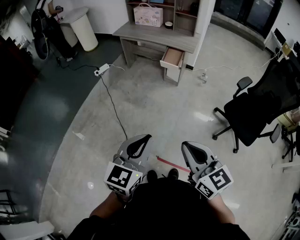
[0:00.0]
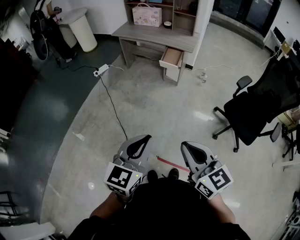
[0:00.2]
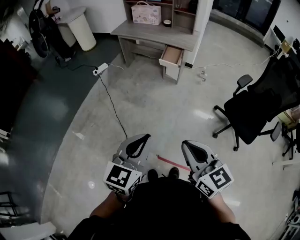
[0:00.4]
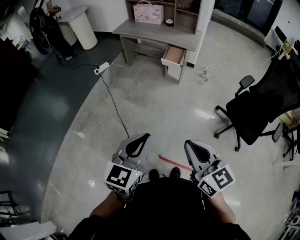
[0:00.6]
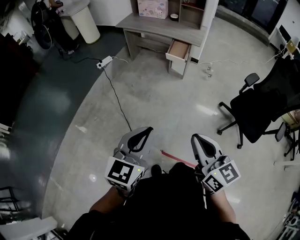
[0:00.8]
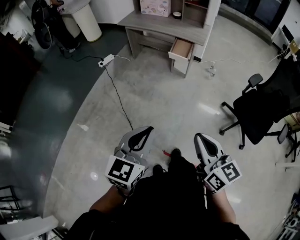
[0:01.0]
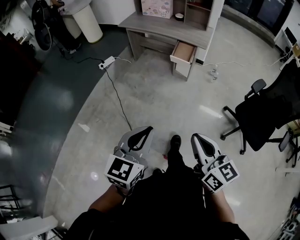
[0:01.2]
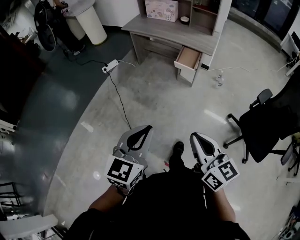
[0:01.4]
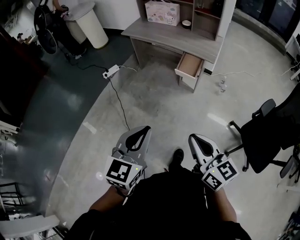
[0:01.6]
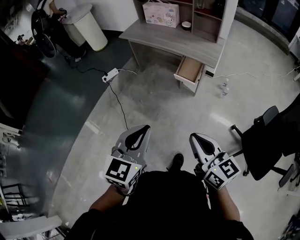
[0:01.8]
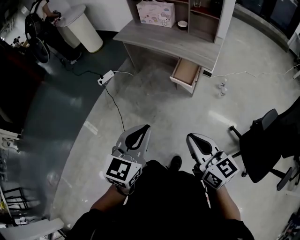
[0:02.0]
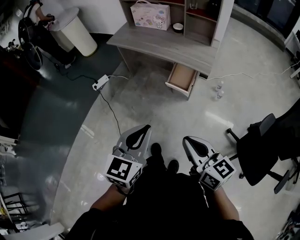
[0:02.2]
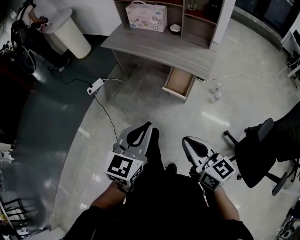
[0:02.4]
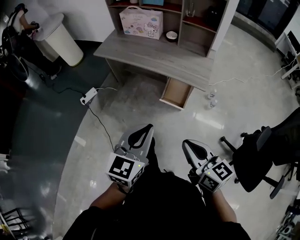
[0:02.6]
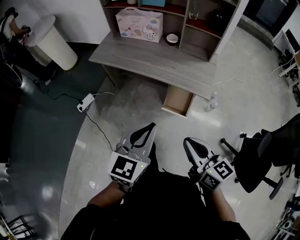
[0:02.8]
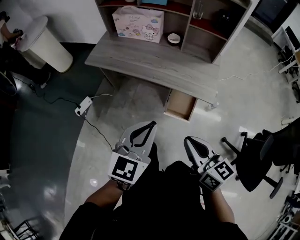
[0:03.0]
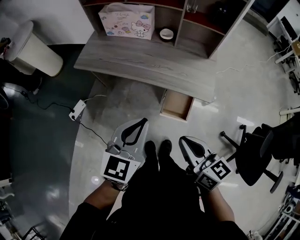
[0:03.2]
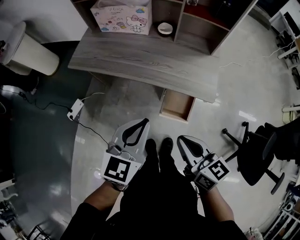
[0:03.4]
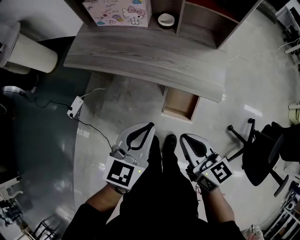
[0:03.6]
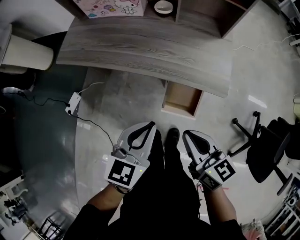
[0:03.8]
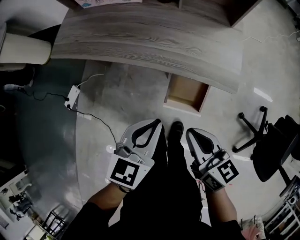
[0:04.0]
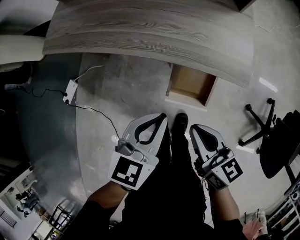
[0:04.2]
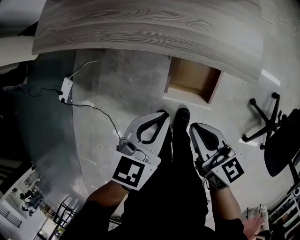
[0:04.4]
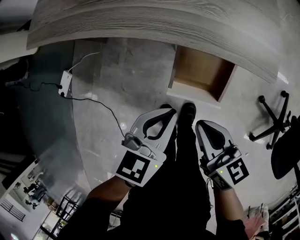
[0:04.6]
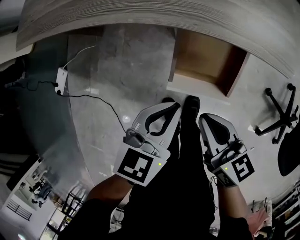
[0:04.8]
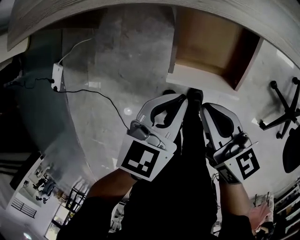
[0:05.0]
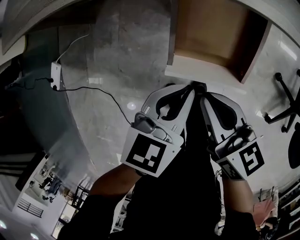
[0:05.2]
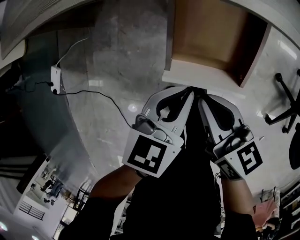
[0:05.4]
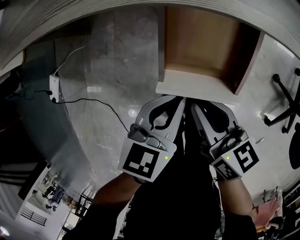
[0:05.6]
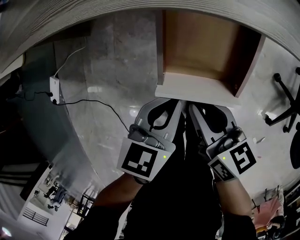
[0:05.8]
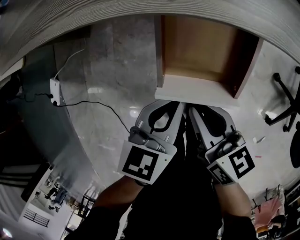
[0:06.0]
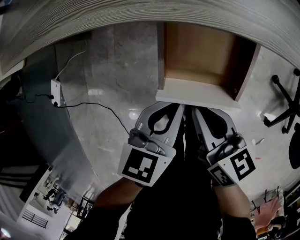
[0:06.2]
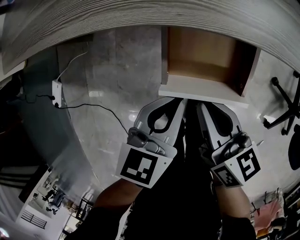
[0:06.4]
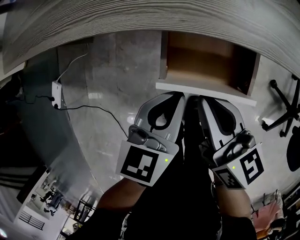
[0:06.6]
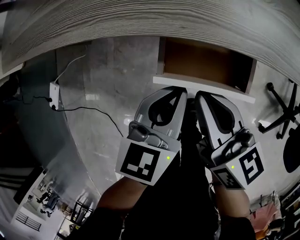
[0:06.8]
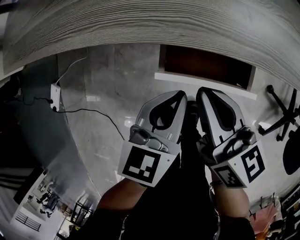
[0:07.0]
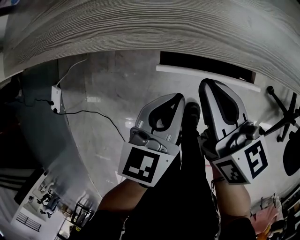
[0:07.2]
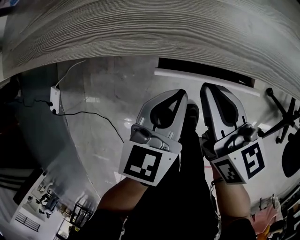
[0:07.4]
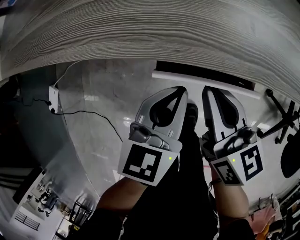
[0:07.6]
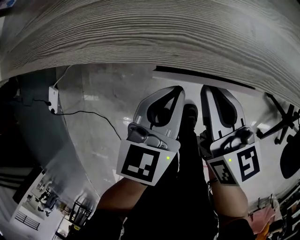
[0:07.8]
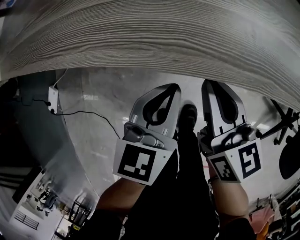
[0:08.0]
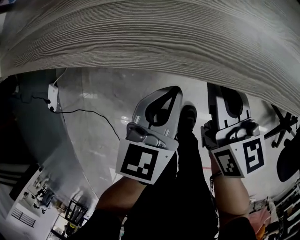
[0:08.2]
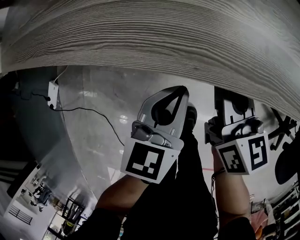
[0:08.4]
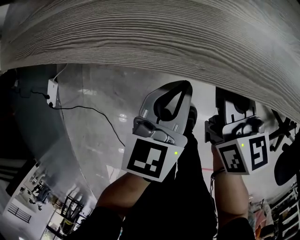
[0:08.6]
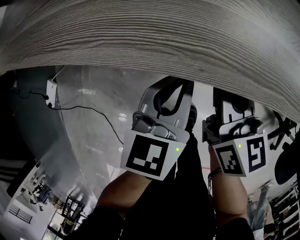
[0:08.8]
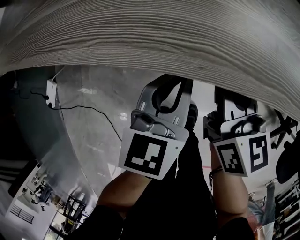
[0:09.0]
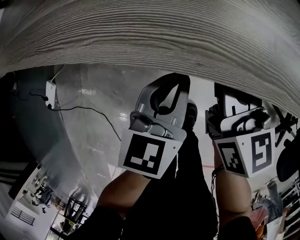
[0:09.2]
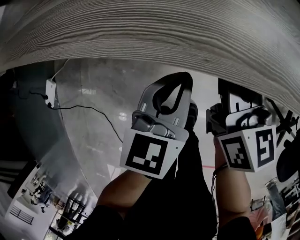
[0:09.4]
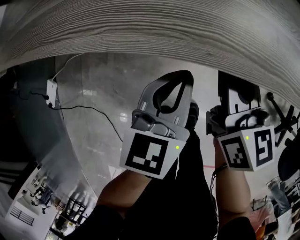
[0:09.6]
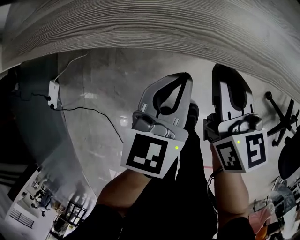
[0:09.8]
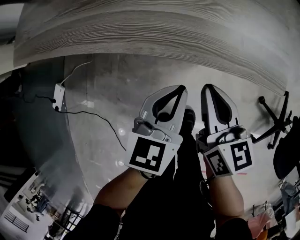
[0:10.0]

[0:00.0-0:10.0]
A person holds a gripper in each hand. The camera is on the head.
0:00.0 to 0:01.4: The two grippers go about 20 cm forward.
0:01.4 to 0:02.8: The two grippers travel together, forward, roughly 50 cm.
0:02.8 to 0:04.2: Both grippers travel together downward and forward, approximately 30 cm. The left gripper changes its angle by approximately 20 degrees.
0:04.2 to 0:05.8: The grippers both shift downward by some 25 cm.
0:05.8 to 0:07.2: The left gripper travels forward by about 5 cm; the right gripper heads forward and upward, covering approximately 15 cm.
0:07.2 to 0:08.6: The grippers both shift forward by about 5 cm.
0:08.6 to 0:10.0: The right gripper moves backward and upward, approximately 10 cm; the left gripper heads upward, covering approximately 5 cm.

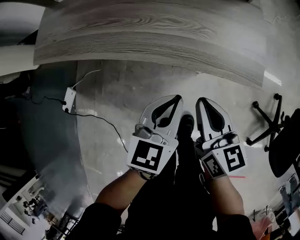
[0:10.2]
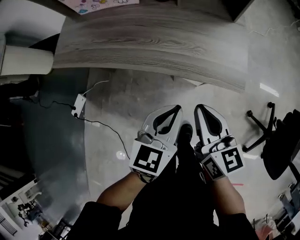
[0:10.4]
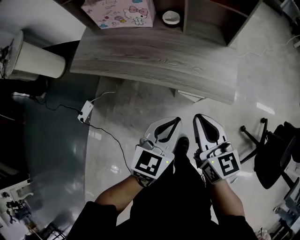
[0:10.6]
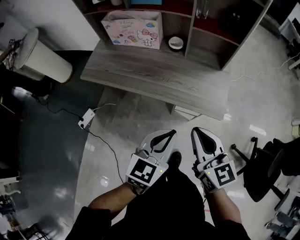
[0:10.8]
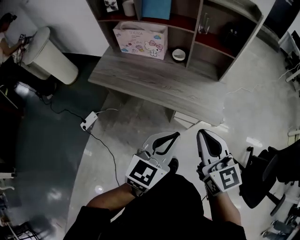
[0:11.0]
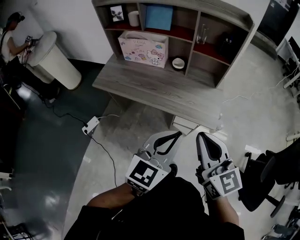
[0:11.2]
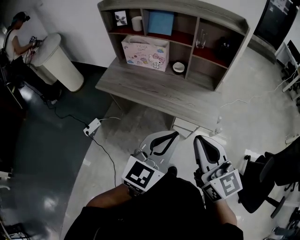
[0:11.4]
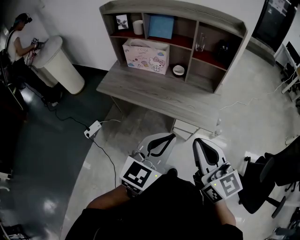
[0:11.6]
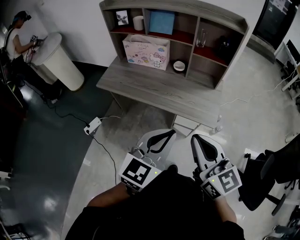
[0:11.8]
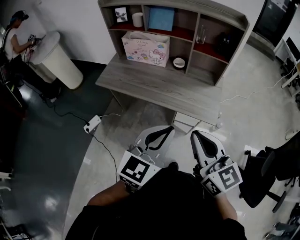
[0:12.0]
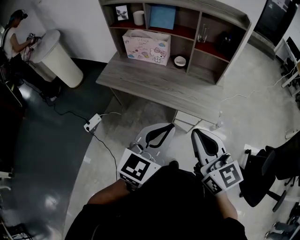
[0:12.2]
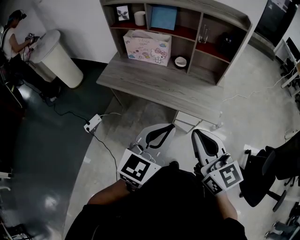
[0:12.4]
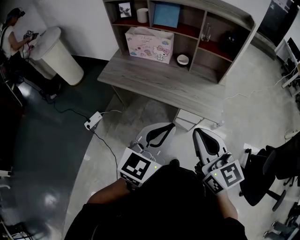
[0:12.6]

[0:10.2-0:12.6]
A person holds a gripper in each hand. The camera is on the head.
0:10.2 to 0:11.4: The right gripper travels upward by approximately 40 cm, and changes its angle by some 30 degrees; the left gripper travels upward and backward by approximately 40 cm, and rotates some 30 degrees.
0:11.4 to 0:12.6: The left gripper travels to the left by some 5 cm.

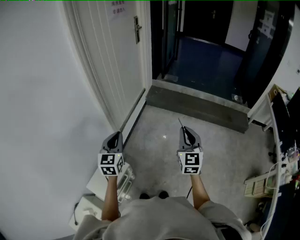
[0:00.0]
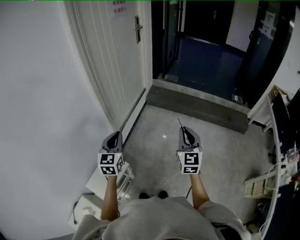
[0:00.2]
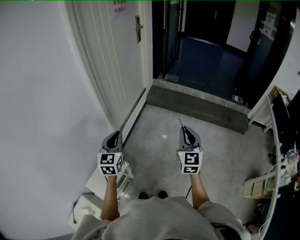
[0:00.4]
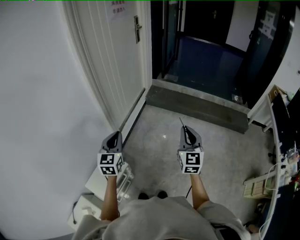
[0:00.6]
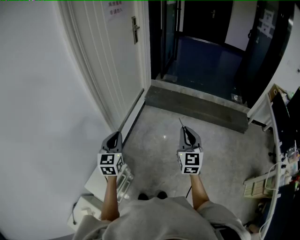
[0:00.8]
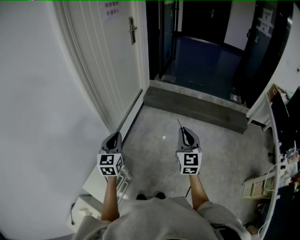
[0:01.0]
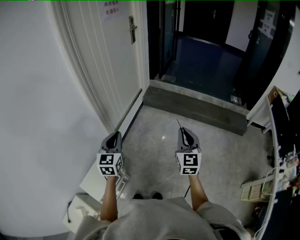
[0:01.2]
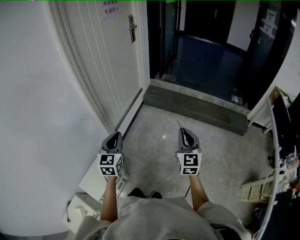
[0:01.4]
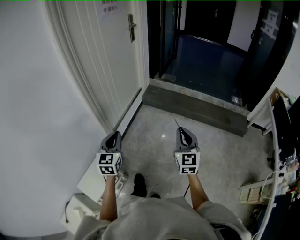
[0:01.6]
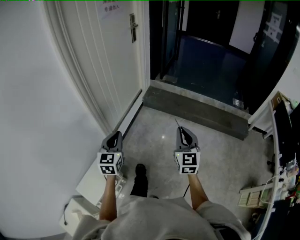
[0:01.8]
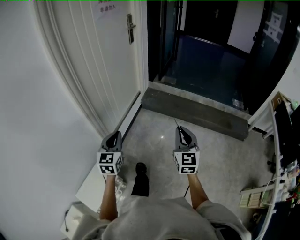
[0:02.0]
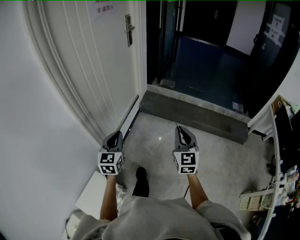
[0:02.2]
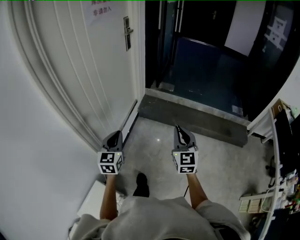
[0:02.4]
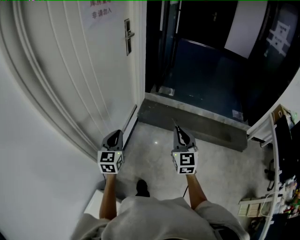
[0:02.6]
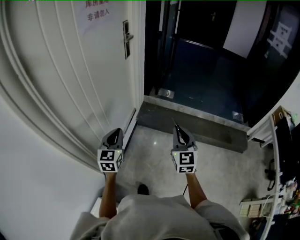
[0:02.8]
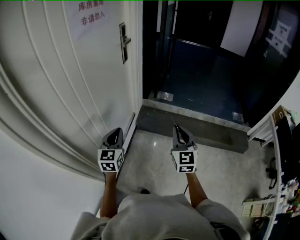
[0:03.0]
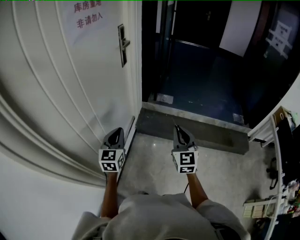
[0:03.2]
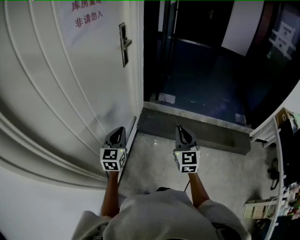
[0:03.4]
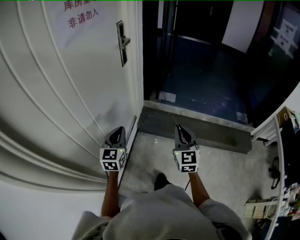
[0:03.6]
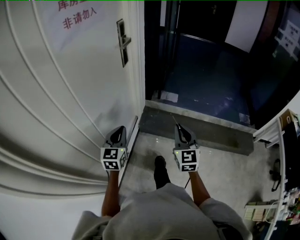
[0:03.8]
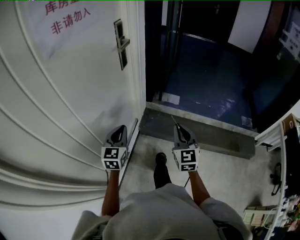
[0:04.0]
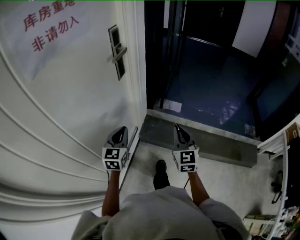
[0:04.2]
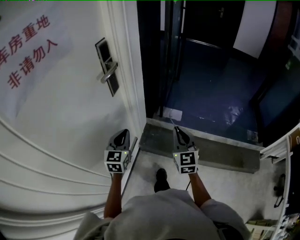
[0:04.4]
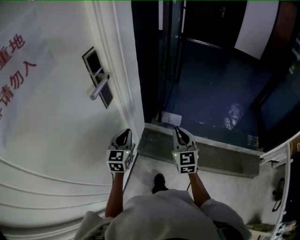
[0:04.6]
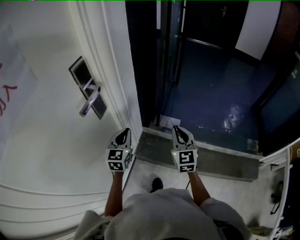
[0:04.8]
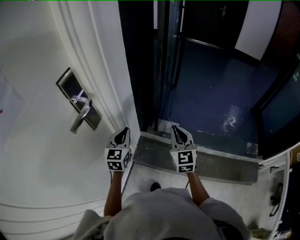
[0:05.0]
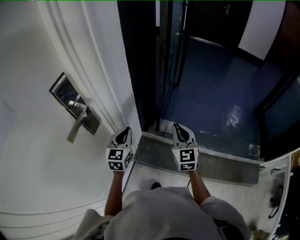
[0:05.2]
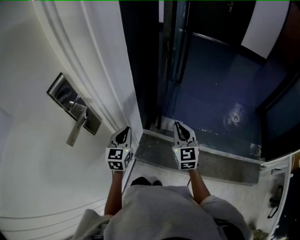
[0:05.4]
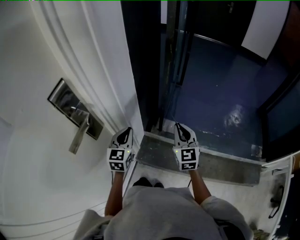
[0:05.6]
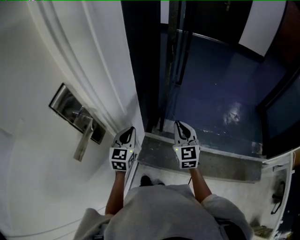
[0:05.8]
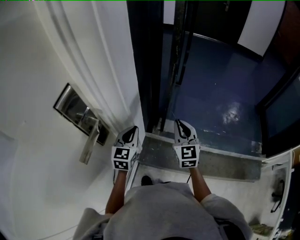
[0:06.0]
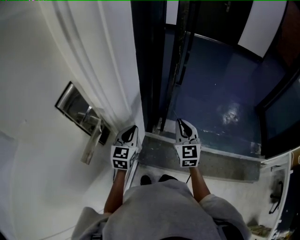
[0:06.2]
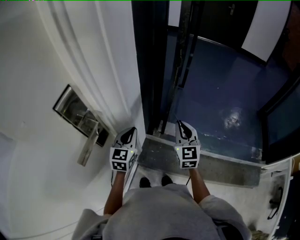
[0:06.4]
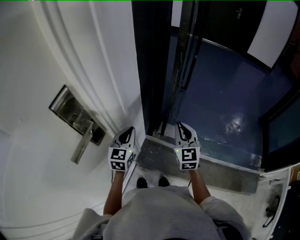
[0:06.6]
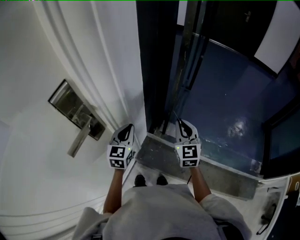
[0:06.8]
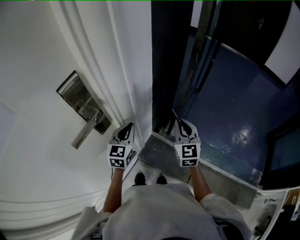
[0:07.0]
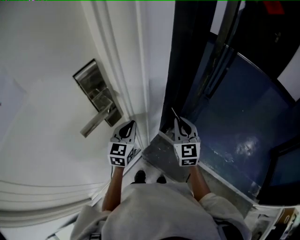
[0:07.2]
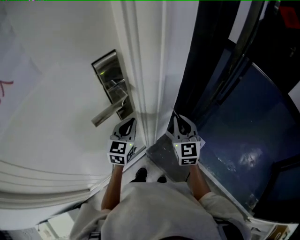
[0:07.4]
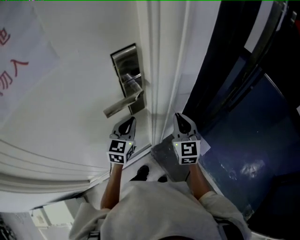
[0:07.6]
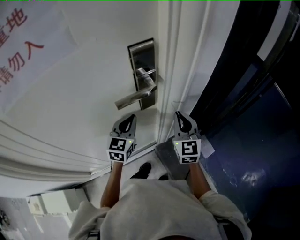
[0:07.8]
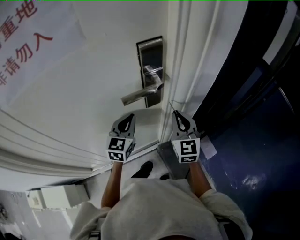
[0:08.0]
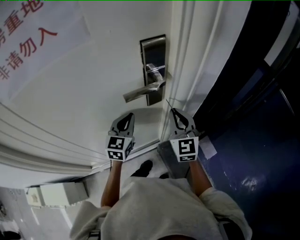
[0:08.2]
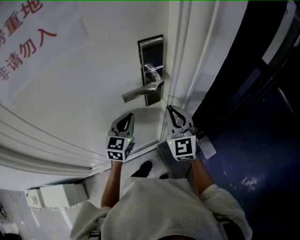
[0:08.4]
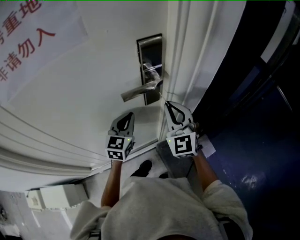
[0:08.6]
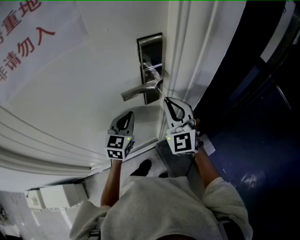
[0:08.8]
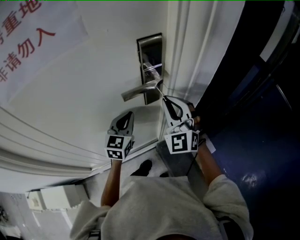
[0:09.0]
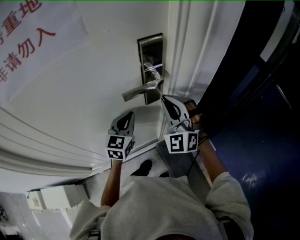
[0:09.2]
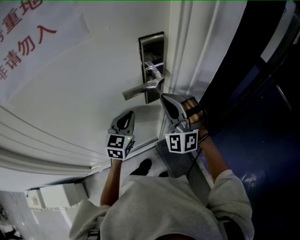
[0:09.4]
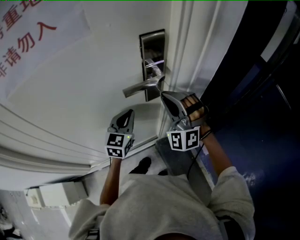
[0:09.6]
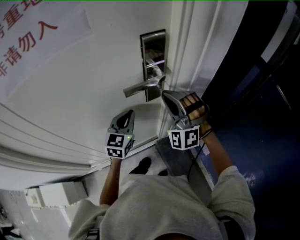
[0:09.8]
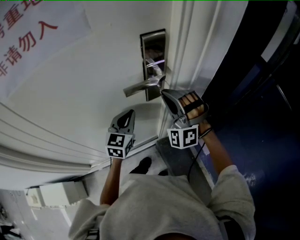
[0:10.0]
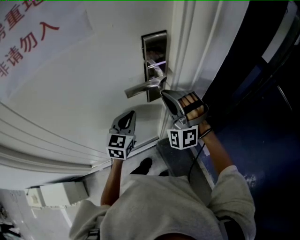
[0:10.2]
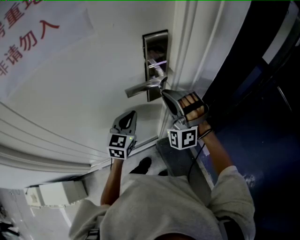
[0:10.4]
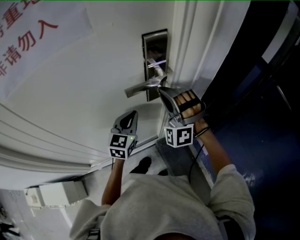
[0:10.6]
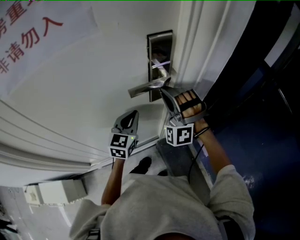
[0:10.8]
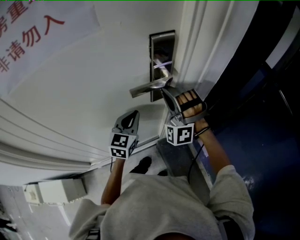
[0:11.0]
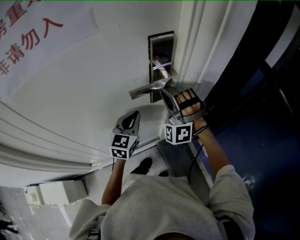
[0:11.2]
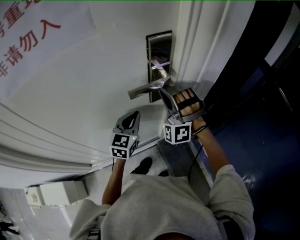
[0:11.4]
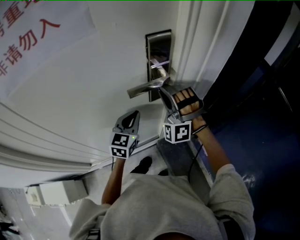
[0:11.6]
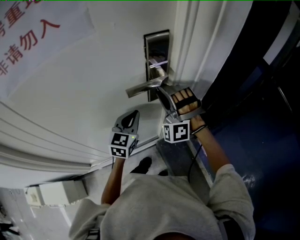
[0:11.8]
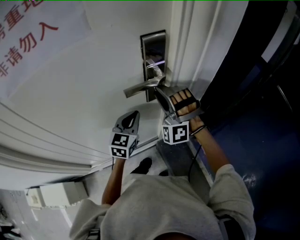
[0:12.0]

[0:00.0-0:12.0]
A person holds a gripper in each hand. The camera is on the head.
0:00.0 to 0:01.6: The right gripper travels to the right and forward by about 10 cm. Meanwhile the left gripper travels to the right by about 5 cm.
0:01.6 to 0:03.0: The two grippers travel together, forward, approximately 50 cm.
0:03.0 to 0:04.4: The grippers both shift forward by approximately 40 cm.
0:04.4 to 0:06.0: The grippers both shift forward by about 30 cm.
0:06.0 to 0:07.6: The right gripper moves some 15 cm, and turns by about 40 degrees. Meanwhile the left gripper changes place by approximately 15 cm, and swivels approximately 40 degrees.
0:07.6 to 0:09.0: The right gripper travels to the left and upward by roughly 15 cm, and changes its angle by about 40 degrees; the left gripper moves to the left, approximately 5 cm.
0:09.0 to 0:10.4: The right gripper rolls counterclockwise, seen from behind, by approximately 40 degrees.
0:10.4 to 0:12.0: The right gripper opens up.
